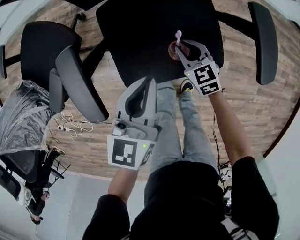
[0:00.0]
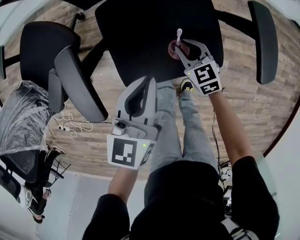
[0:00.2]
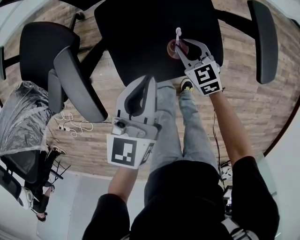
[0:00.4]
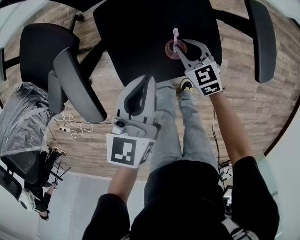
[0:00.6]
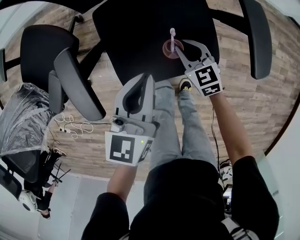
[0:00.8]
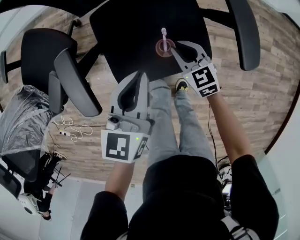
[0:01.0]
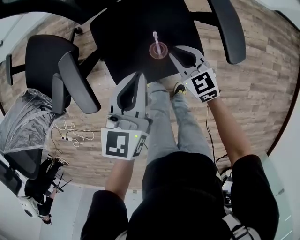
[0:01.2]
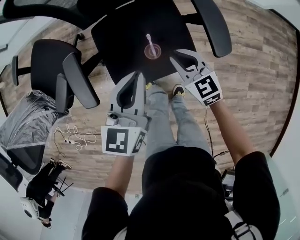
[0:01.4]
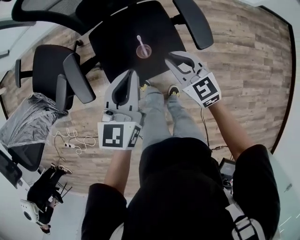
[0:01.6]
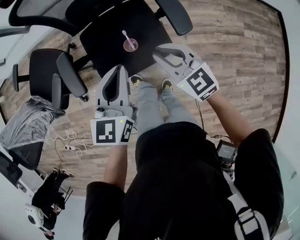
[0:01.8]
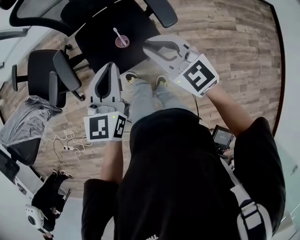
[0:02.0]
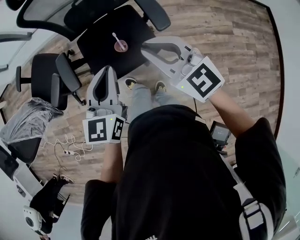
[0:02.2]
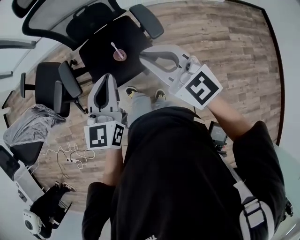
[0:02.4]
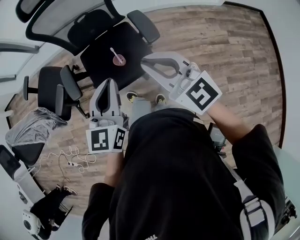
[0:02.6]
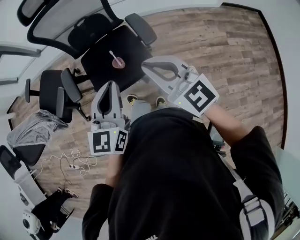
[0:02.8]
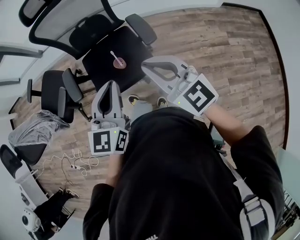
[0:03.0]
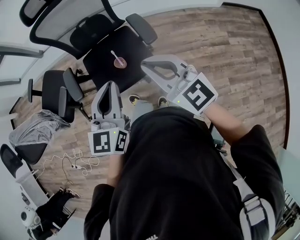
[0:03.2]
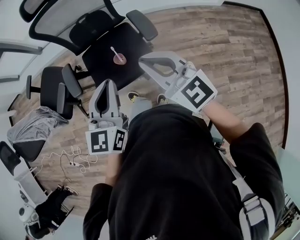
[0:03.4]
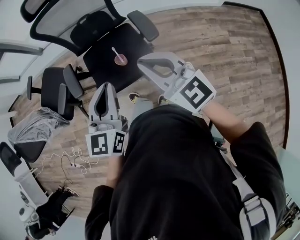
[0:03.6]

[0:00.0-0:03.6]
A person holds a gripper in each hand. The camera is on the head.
0:00.0 to 0:01.8: The left gripper travels upward, backward and to the right by some 25 cm, while the right gripper shifts about 35 cm upward and backward, and changes its angle by approximately 20 degrees.
0:01.8 to 0:03.6: The right gripper shifts about 25 cm upward and backward; the left gripper heads backward and upward, covering roughly 20 cm.

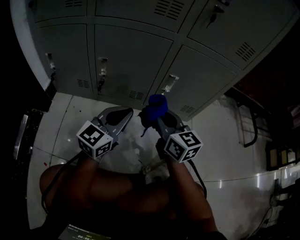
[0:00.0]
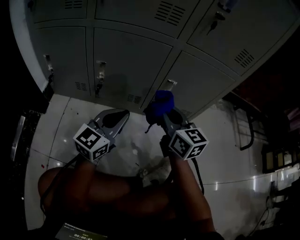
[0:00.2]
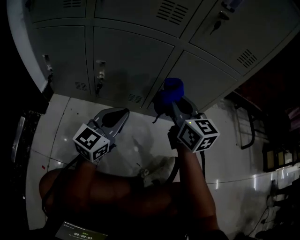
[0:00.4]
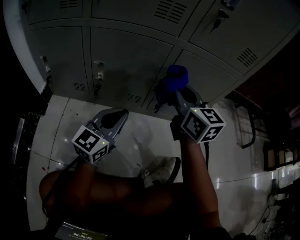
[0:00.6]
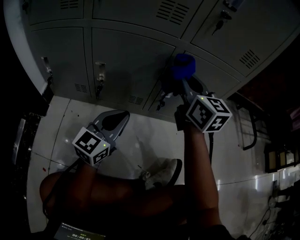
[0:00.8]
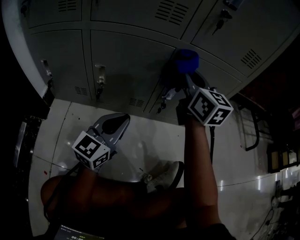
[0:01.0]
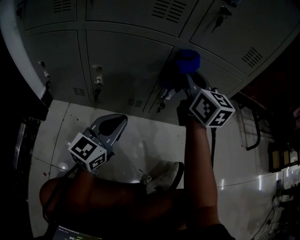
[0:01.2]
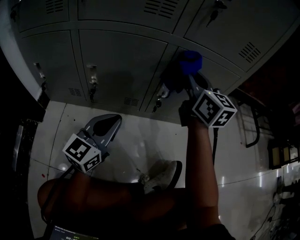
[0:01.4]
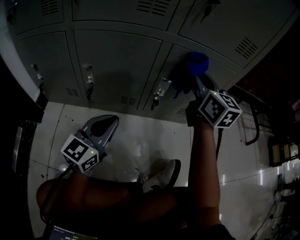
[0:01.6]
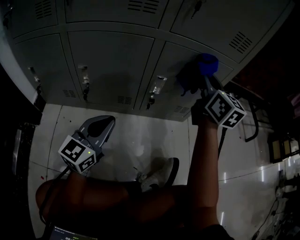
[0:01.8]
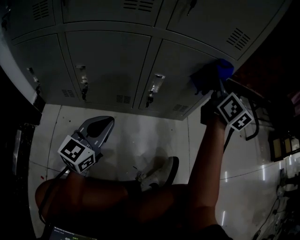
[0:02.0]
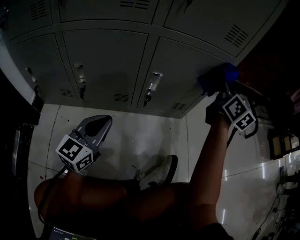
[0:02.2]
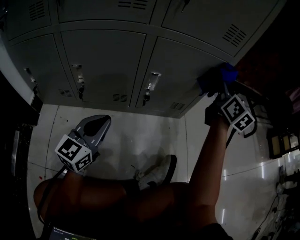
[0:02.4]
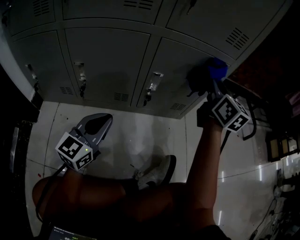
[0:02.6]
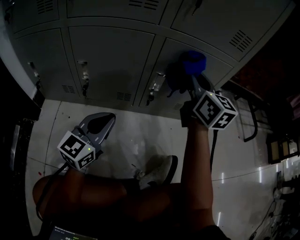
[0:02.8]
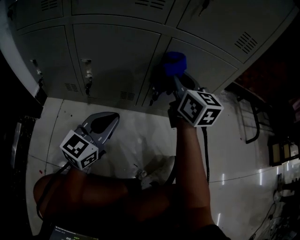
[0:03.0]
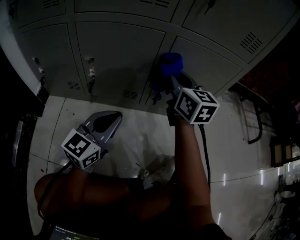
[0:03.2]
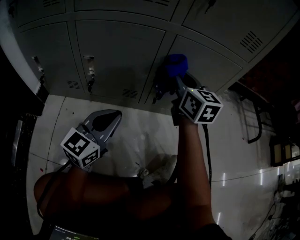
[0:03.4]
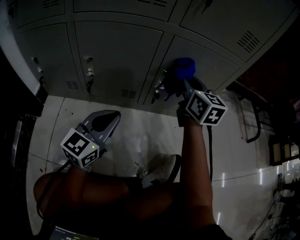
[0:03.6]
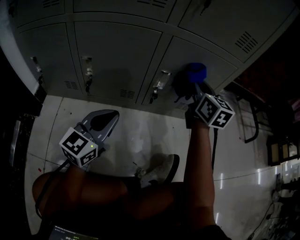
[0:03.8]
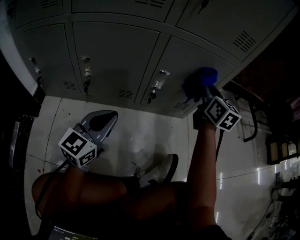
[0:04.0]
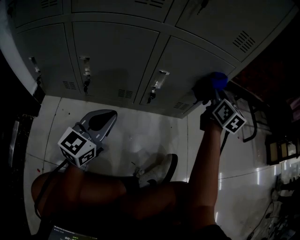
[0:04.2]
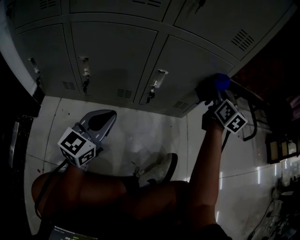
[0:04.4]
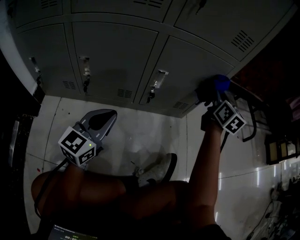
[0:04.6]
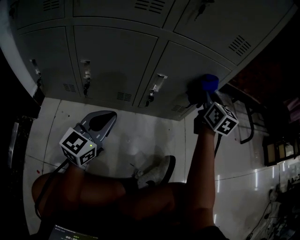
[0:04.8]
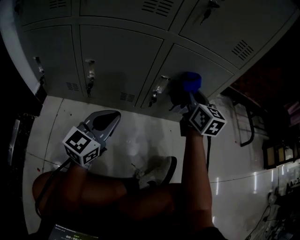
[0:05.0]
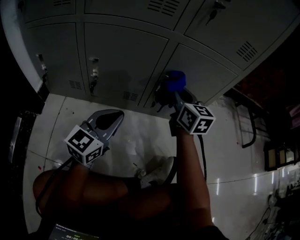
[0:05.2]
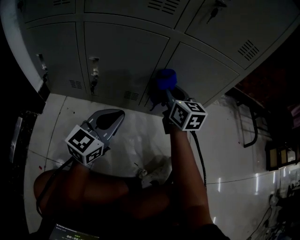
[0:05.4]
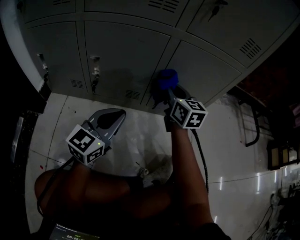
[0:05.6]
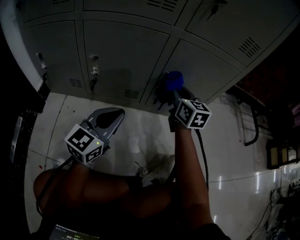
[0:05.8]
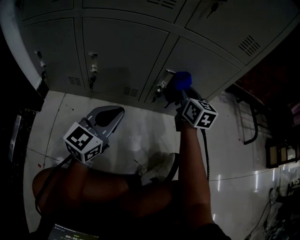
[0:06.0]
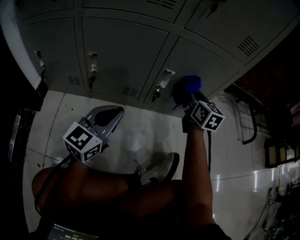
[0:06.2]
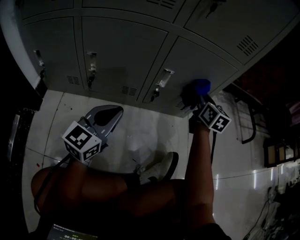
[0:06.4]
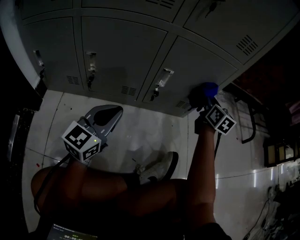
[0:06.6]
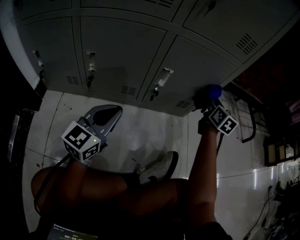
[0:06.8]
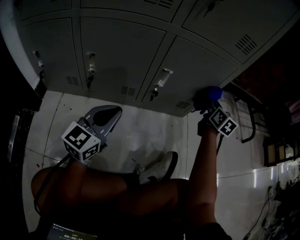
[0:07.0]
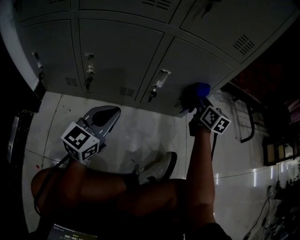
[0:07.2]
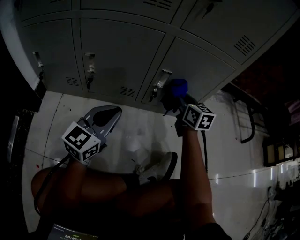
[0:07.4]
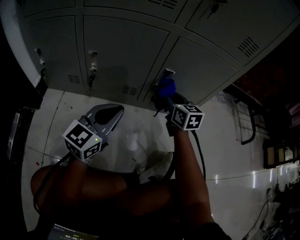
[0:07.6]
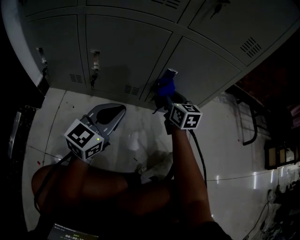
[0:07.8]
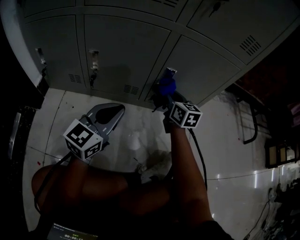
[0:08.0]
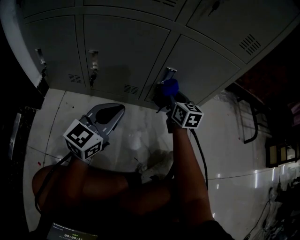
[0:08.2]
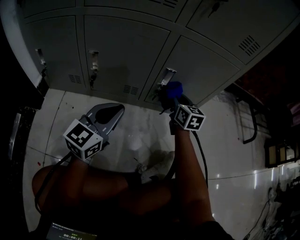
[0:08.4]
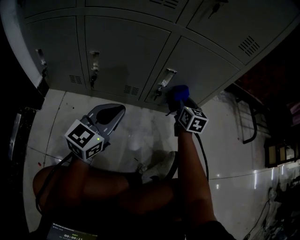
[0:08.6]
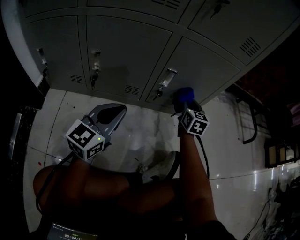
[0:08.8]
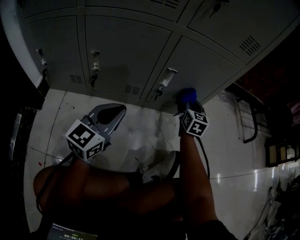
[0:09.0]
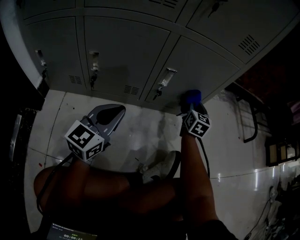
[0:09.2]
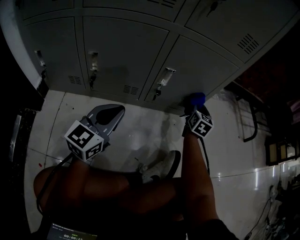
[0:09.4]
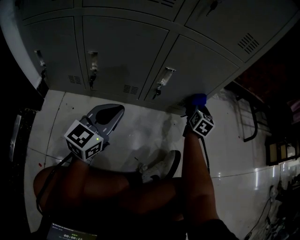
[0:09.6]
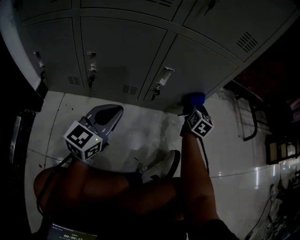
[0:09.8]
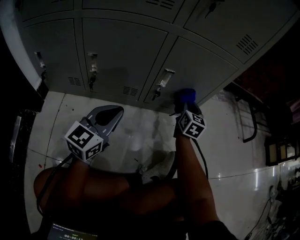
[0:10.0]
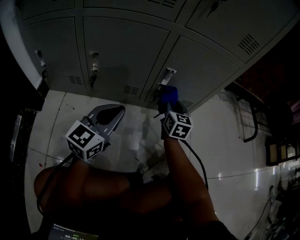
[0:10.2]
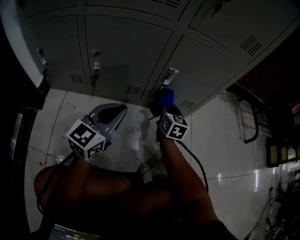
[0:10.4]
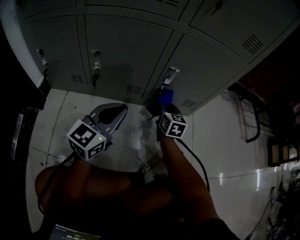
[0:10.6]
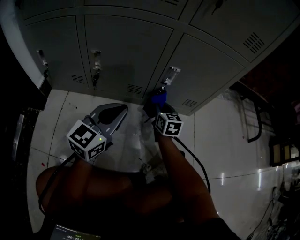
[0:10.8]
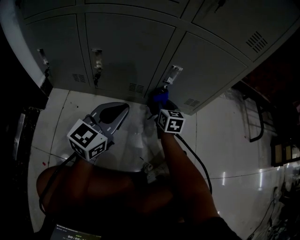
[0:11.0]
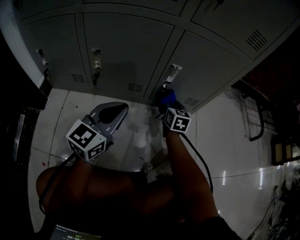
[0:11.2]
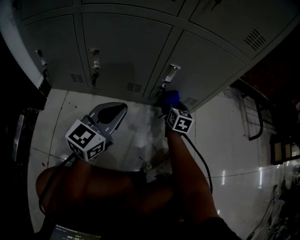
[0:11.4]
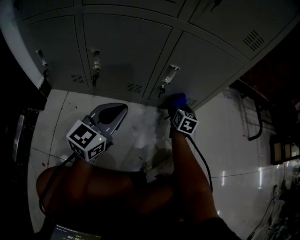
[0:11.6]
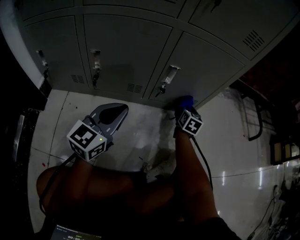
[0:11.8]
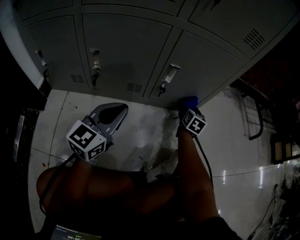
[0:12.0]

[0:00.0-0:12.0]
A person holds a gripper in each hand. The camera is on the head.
0:00.0 to 0:01.6: The right gripper heads forward, upward and to the right, covering about 20 cm.
0:01.6 to 0:03.0: The right gripper moves some 15 cm to the right and comes back.
0:03.0 to 0:04.4: The right gripper shifts roughly 20 cm to the right, and changes its angle by approximately 30 degrees.
0:04.4 to 0:06.0: The right gripper heads to the left and downward, covering some 20 cm.
0:06.0 to 0:07.6: The right gripper moves downward, roughly 5 cm, and travels to the right and back again, approximately 15 cm each way.
0:07.6 to 0:09.0: The right gripper travels to the right by some 10 cm, and swivels about 30 degrees.
0:09.0 to 0:10.4: The right gripper travels to the left and backward by approximately 10 cm.
0:10.4 to 0:12.0: The right gripper heads to the right and forward, covering approximately 15 cm, and rotates approximately 20 degrees.

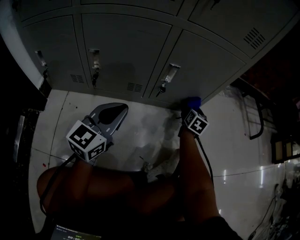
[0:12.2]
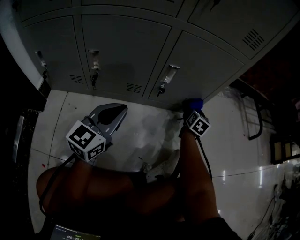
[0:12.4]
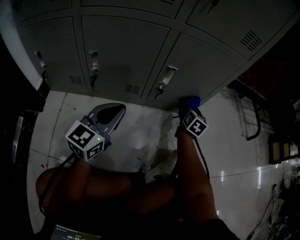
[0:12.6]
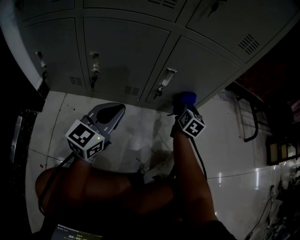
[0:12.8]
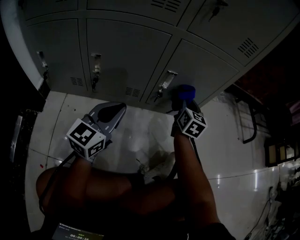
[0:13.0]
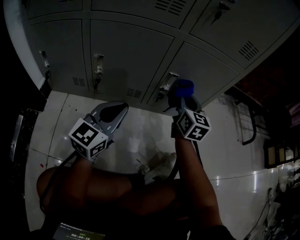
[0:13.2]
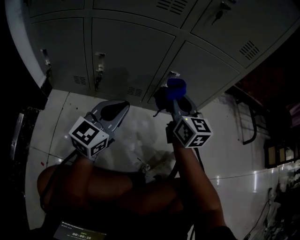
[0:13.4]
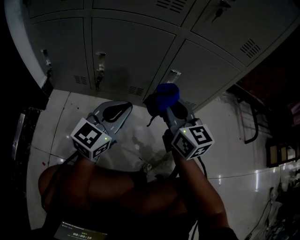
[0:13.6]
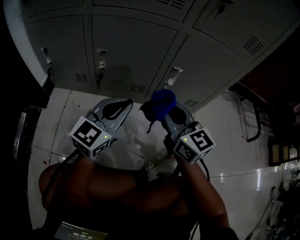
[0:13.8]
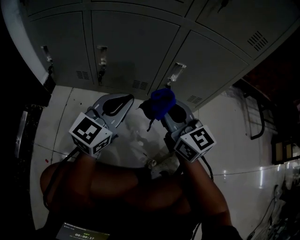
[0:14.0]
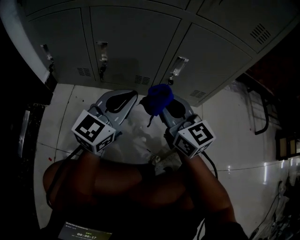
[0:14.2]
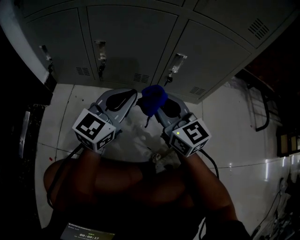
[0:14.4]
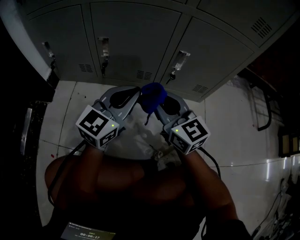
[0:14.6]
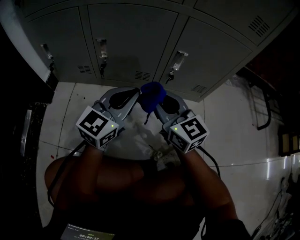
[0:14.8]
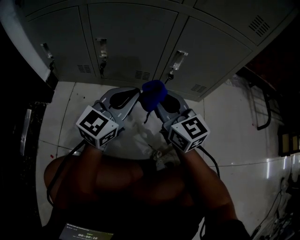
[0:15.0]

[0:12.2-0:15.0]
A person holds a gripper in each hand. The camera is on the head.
0:12.2 to 0:13.6: The right gripper heads upward, to the left and backward, covering about 35 cm, and swivels some 50 degrees.
0:13.6 to 0:15.0: The right gripper is displaced downward by approximately 5 cm.

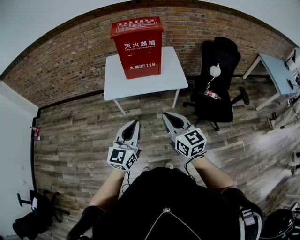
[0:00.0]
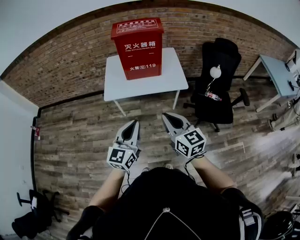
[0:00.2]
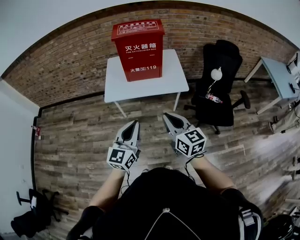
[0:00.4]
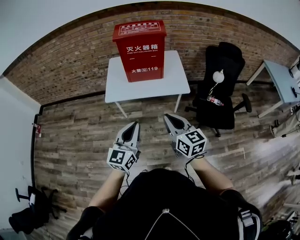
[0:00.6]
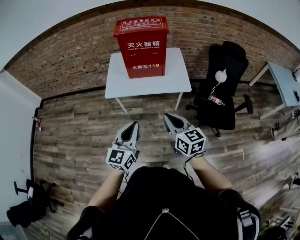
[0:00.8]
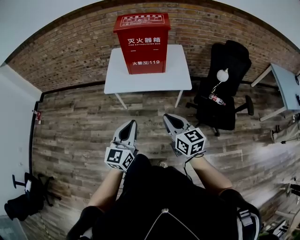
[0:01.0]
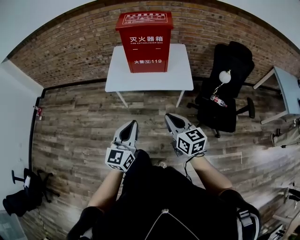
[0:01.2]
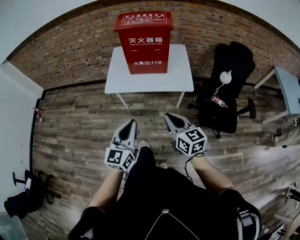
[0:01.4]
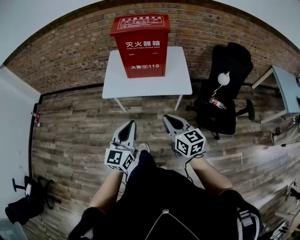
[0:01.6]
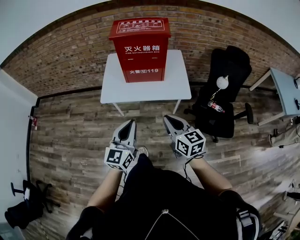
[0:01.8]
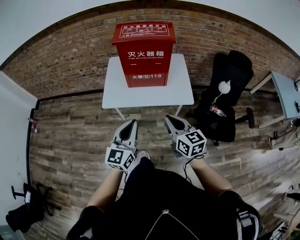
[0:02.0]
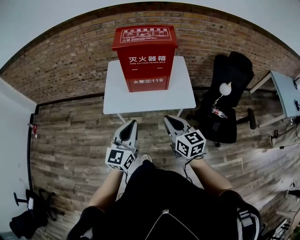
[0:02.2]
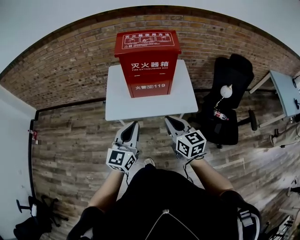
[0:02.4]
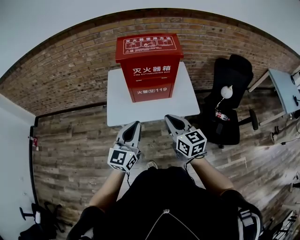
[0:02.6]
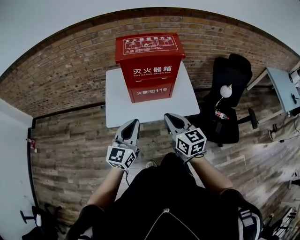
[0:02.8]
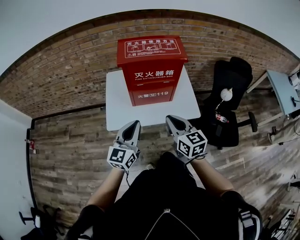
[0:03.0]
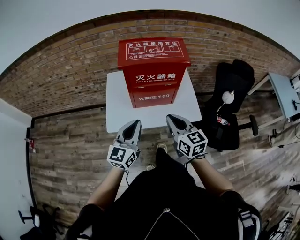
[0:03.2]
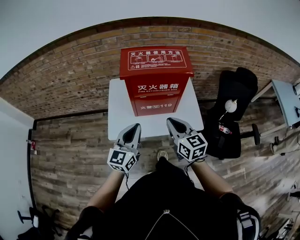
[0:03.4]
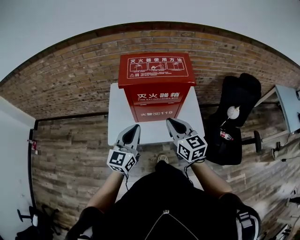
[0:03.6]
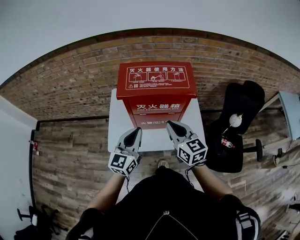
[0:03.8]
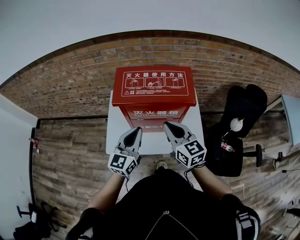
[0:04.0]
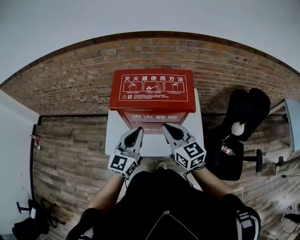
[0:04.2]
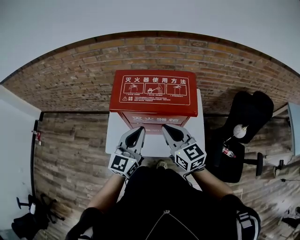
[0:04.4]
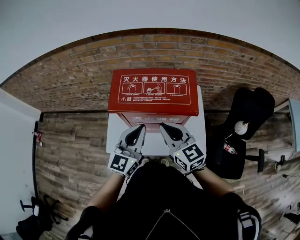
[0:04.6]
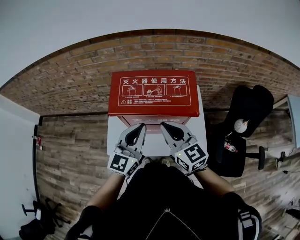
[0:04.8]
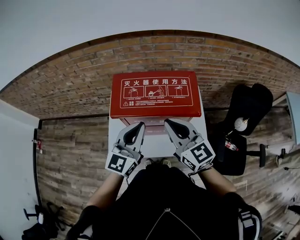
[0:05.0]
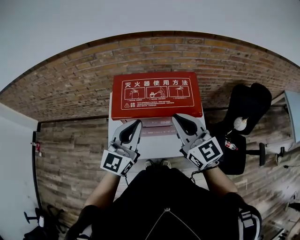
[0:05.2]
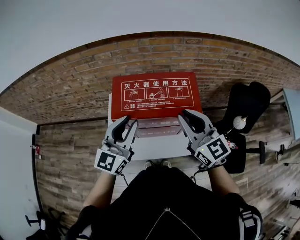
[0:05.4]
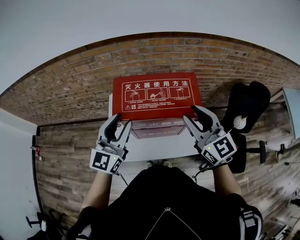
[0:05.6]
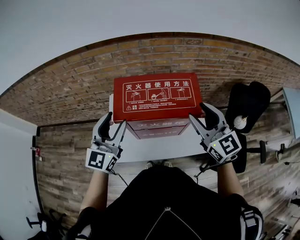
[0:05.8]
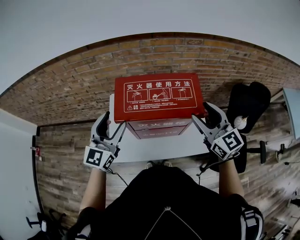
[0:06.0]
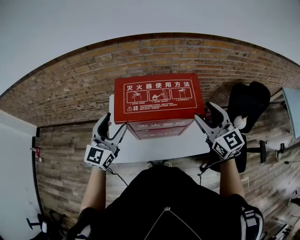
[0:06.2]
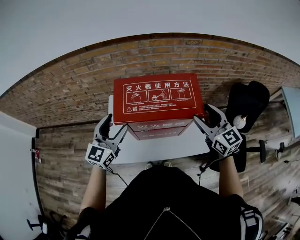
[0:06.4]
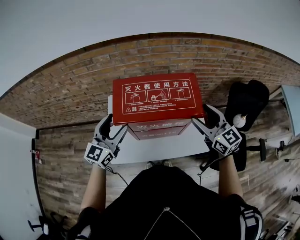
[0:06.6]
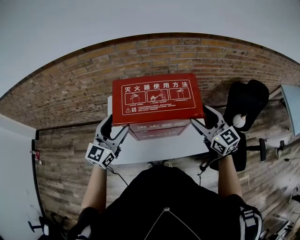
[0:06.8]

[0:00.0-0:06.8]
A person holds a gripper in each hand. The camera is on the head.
0:00.0 to 0:01.4: The left gripper changes place by approximately 5 cm, while the right gripper heads forward, to the right and downward, covering approximately 10 cm.
0:01.4 to 0:02.8: Both grippers move forward, some 25 cm.
0:02.8 to 0:04.0: Both grippers move forward, approximately 20 cm.
0:04.0 to 0:05.4: Both grippers travel together upward and forward, approximately 10 cm.
0:05.4 to 0:06.8: The left gripper moves to the left and downward, roughly 10 cm, and opens. The right gripper shifts about 10 cm downward and to the right, and opens its fingers.
